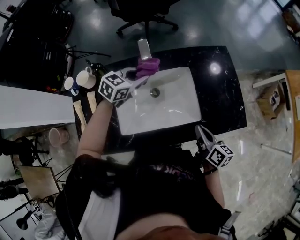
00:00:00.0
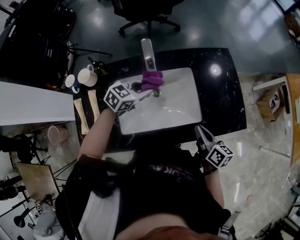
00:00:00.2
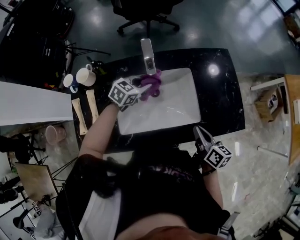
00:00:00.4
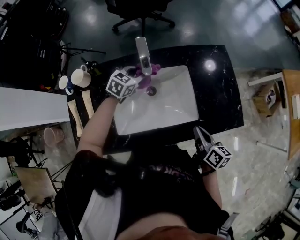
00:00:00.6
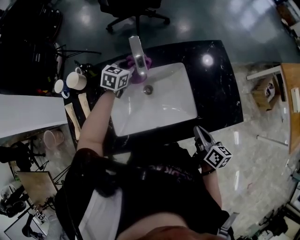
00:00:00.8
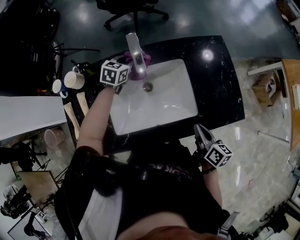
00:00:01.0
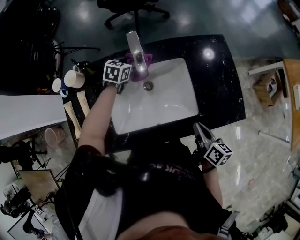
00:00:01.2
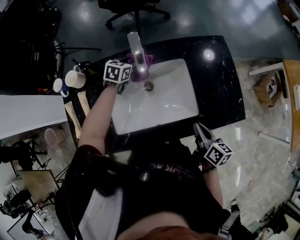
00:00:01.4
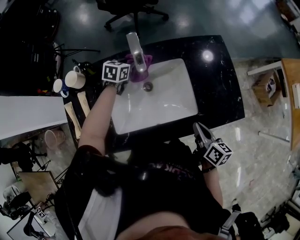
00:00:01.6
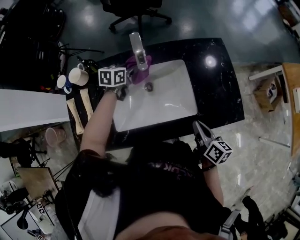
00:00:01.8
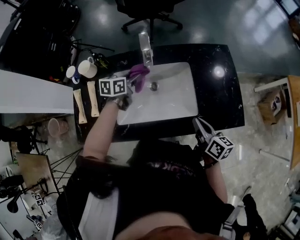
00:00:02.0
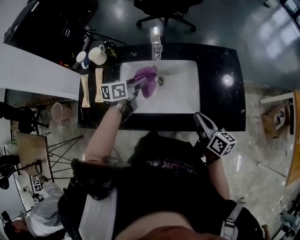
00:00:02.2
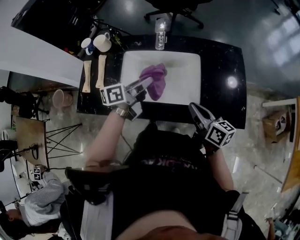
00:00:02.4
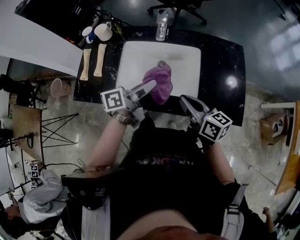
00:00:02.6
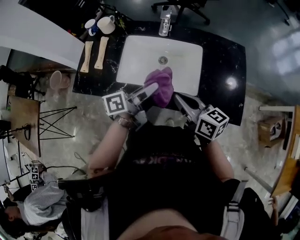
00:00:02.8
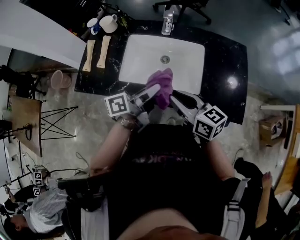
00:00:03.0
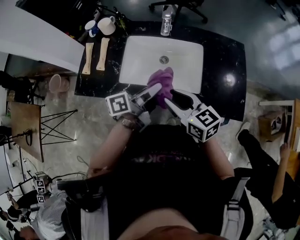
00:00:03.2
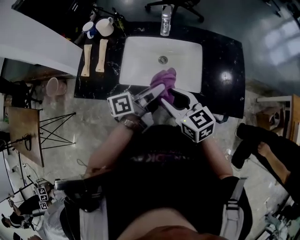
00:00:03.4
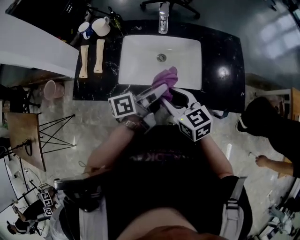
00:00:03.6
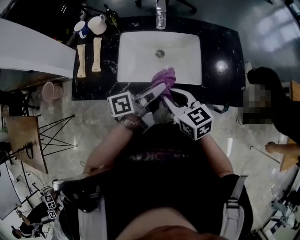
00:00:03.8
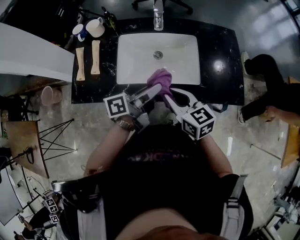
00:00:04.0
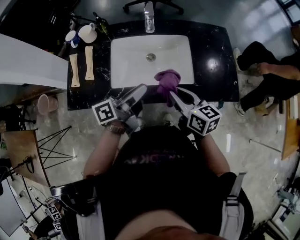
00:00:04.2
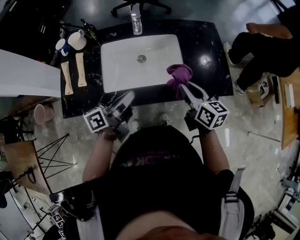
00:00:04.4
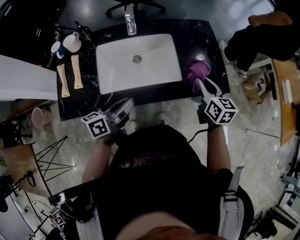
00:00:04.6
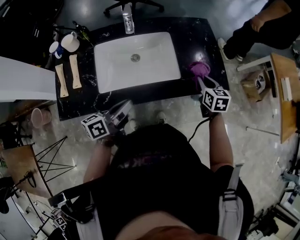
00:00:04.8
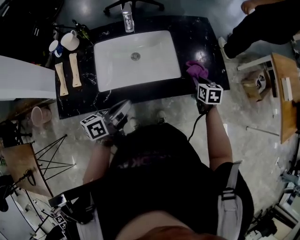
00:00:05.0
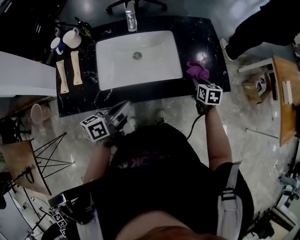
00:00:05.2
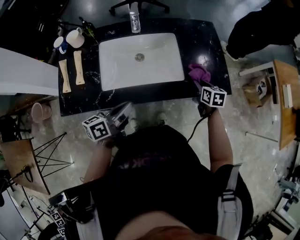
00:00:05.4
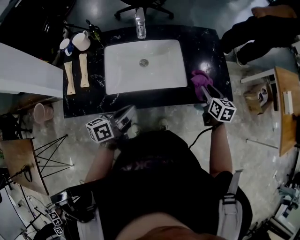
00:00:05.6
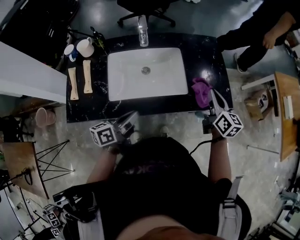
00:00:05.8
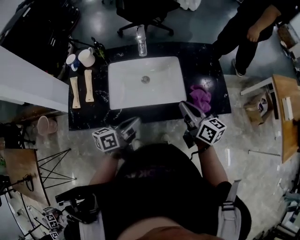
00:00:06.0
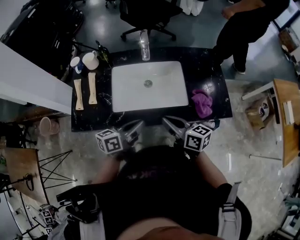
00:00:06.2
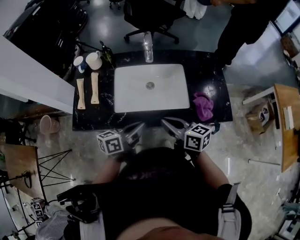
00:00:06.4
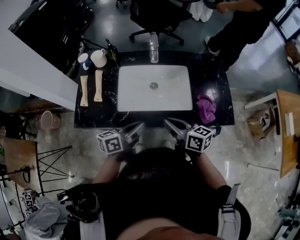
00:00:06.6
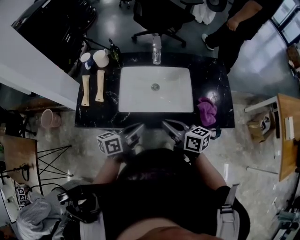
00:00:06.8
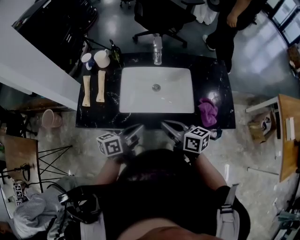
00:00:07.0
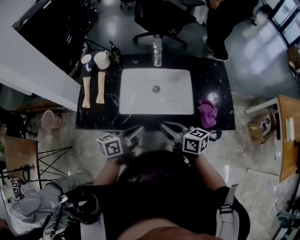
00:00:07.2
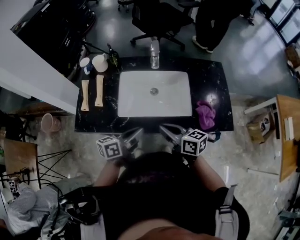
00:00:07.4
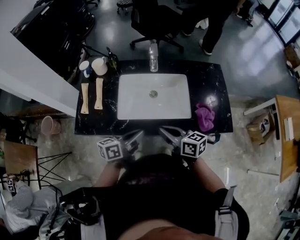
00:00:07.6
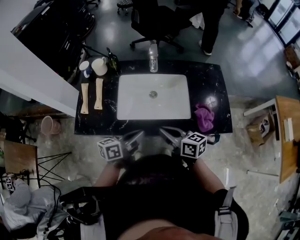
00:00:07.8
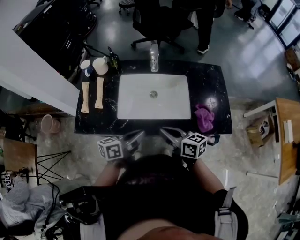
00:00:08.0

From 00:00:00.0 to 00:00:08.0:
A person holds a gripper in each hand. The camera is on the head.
From 00:00:00.0 to 00:00:01.6: The left gripper is displaced downward and forward by roughly 15 cm, and swivels approximately 20 degrees.
From 00:00:01.6 to 00:00:03.2: The left gripper shifts by roughly 35 cm, and rolls counterclockwise, seen from behind, by roughly 60 degrees; the right gripper moves roughly 15 cm, turns by some 60 degrees, and opens up.
From 00:00:03.2 to 00:00:04.8: The right gripper shifts by approximately 25 cm, rotates about 50 degrees, and closes, while the left gripper changes place by some 10 cm, and turns by roughly 20 degrees.
From 00:00:04.8 to 00:00:06.4: The right gripper is displaced to the left and backward by some 25 cm, swivels roughly 50 degrees, and opens and closes again.
From 00:00:06.4 to 00:00:08.0: There are only small adjustments of the grippers.

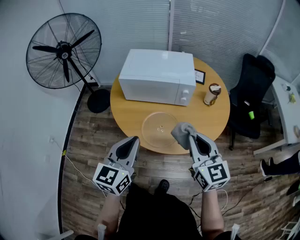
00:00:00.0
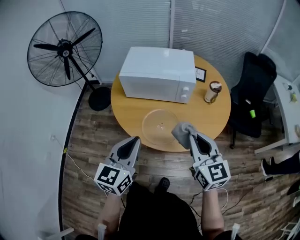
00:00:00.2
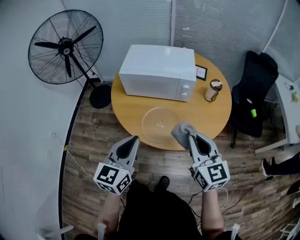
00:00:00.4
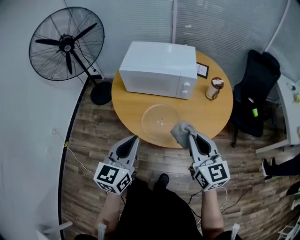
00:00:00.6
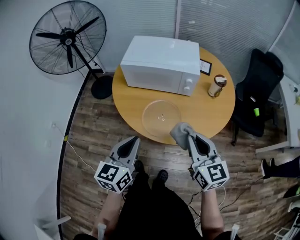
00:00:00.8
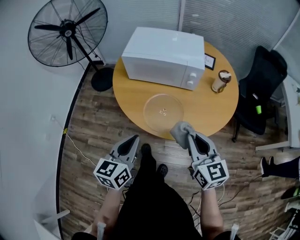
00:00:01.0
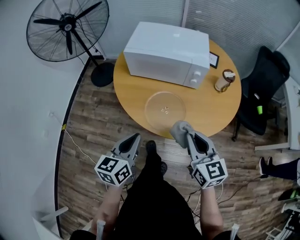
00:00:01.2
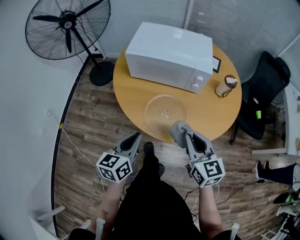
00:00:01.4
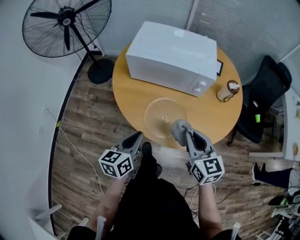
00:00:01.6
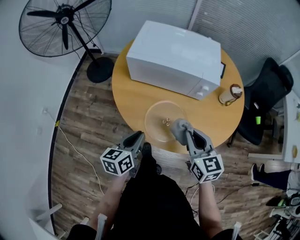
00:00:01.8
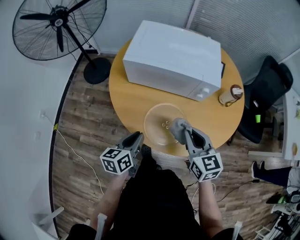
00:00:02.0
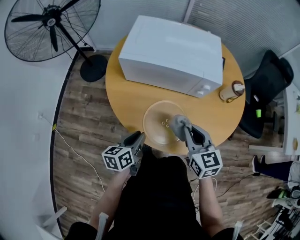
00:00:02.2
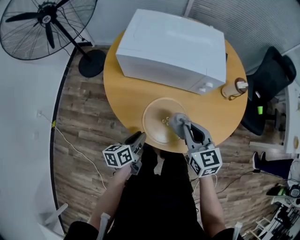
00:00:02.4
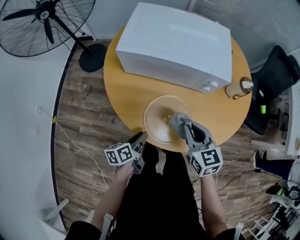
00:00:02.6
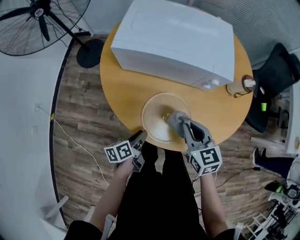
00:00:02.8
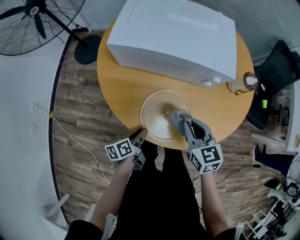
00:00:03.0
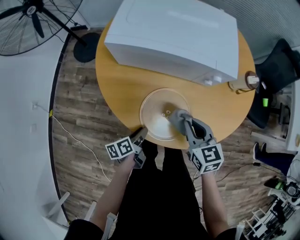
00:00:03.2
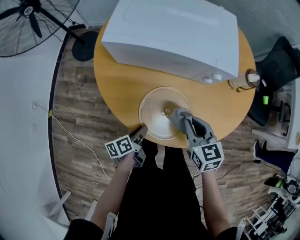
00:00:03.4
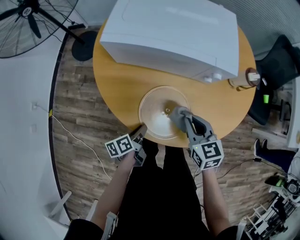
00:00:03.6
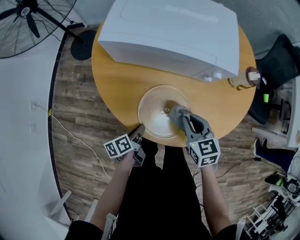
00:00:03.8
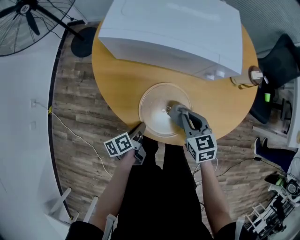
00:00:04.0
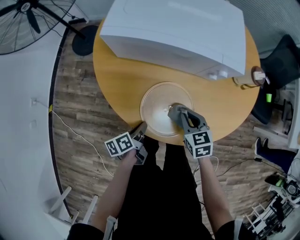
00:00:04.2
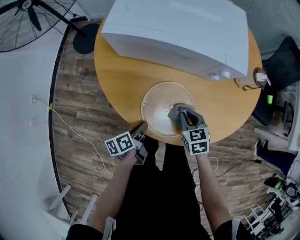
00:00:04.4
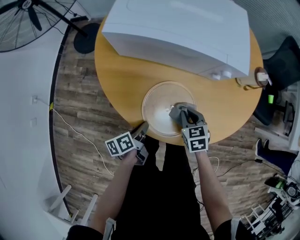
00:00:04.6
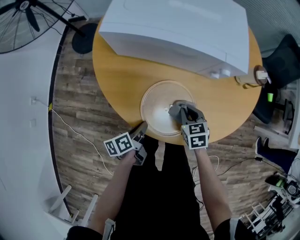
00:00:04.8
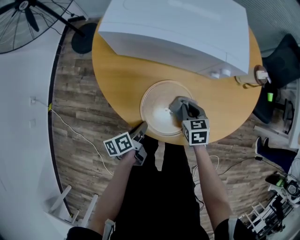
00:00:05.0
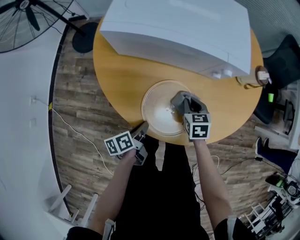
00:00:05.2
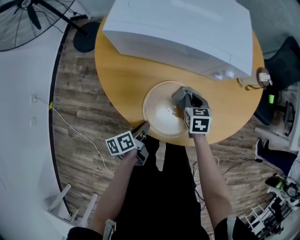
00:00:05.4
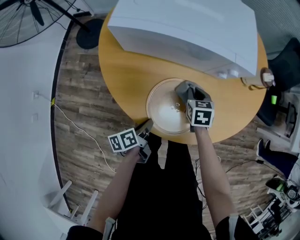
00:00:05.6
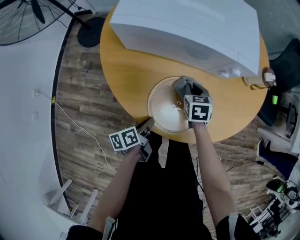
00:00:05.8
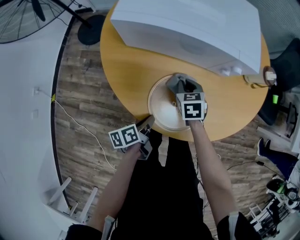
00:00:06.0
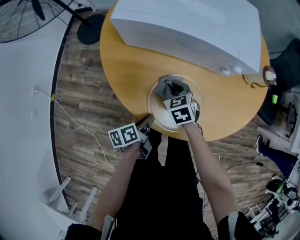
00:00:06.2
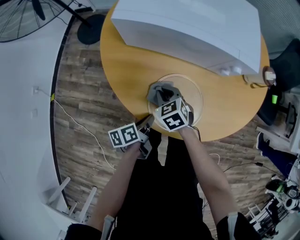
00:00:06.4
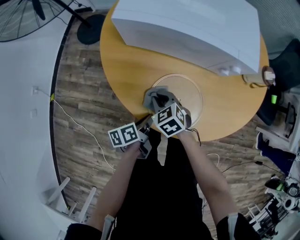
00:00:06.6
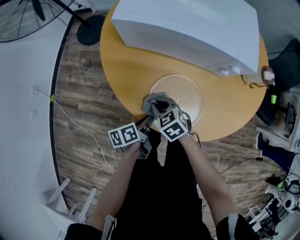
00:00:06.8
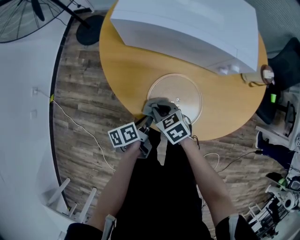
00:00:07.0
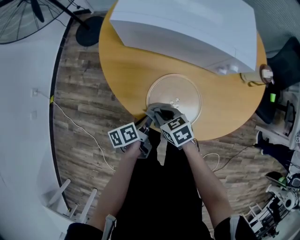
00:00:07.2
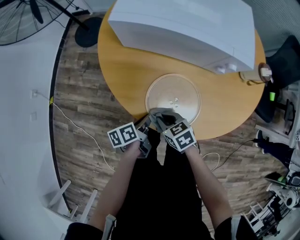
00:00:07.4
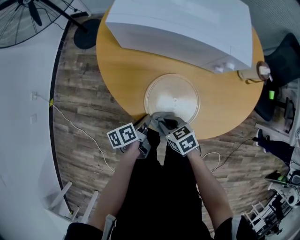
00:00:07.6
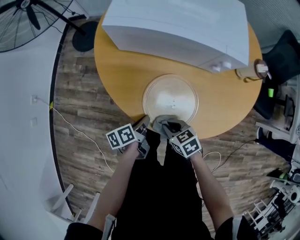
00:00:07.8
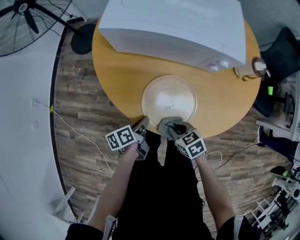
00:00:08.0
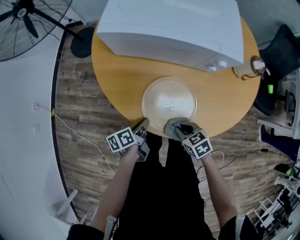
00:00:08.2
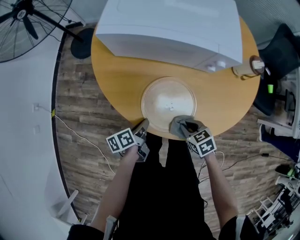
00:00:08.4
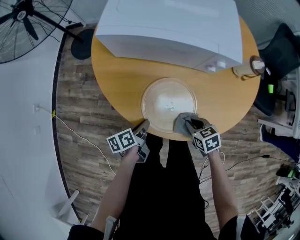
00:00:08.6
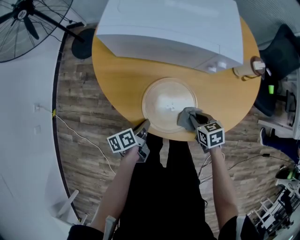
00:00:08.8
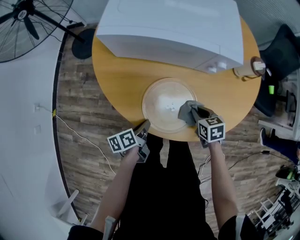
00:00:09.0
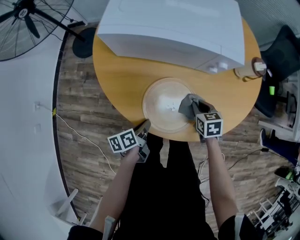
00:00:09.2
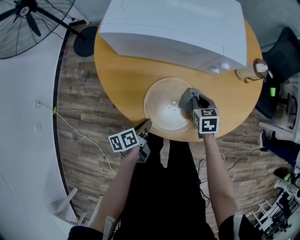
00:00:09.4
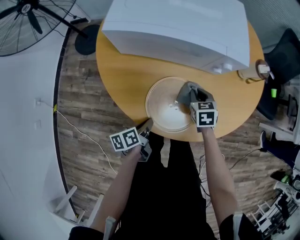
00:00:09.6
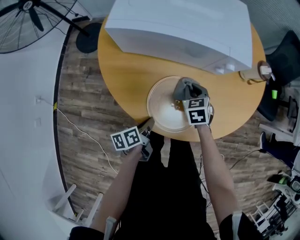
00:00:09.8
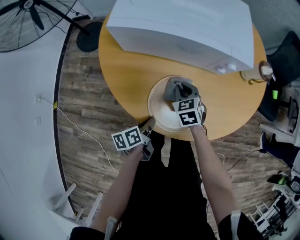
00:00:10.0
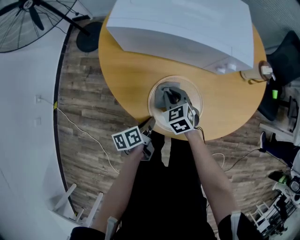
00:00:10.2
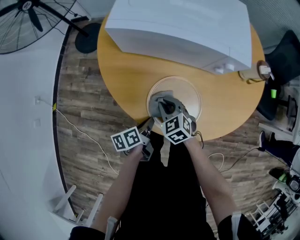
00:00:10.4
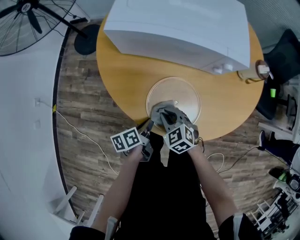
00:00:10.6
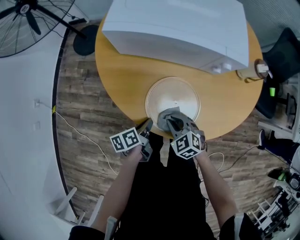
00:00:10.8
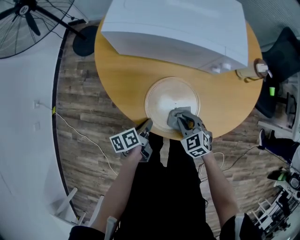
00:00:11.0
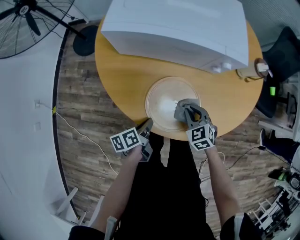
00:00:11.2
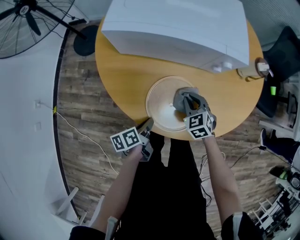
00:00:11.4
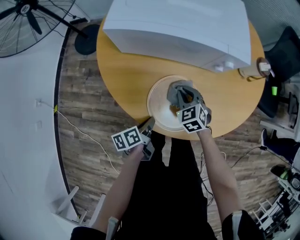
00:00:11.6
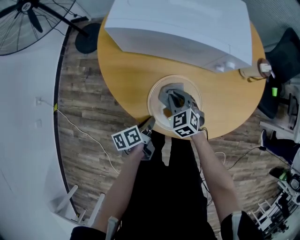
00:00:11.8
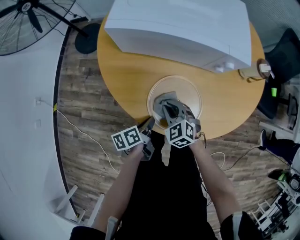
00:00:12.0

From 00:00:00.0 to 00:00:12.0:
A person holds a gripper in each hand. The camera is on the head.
From 00:00:00.0 to 00:00:01.6: The left gripper shifts roughly 15 cm downward, and rotates roughly 30 degrees, while the right gripper moves downward and forward, roughly 10 cm.
From 00:00:01.6 to 00:00:03.0: The left gripper moves downward, roughly 20 cm, changes its angle by about 40 degrees, and opens its fingers. The right gripper moves downward and forward, about 15 cm.
From 00:00:03.0 to 00:00:04.4: The right gripper moves downward, about 15 cm.
From 00:00:04.4 to 00:00:06.0: The right gripper moves forward and to the left, roughly 10 cm.
From 00:00:06.0 to 00:00:07.6: The right gripper moves backward and to the left, roughly 20 cm, and changes its angle by about 30 degrees.
From 00:00:07.6 to 00:00:09.0: The right gripper heads to the right, covering approximately 15 cm, and turns by some 20 degrees.
From 00:00:09.0 to 00:00:10.4: The right gripper heads to the left, covering approximately 20 cm, and turns by approximately 30 degrees.
From 00:00:10.4 to 00:00:12.0: The right gripper goes to the right and returns, about 15 cm each way.

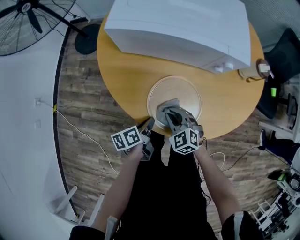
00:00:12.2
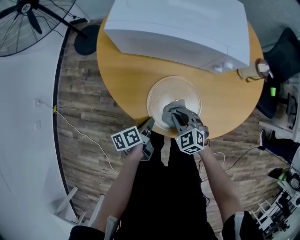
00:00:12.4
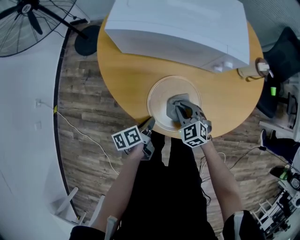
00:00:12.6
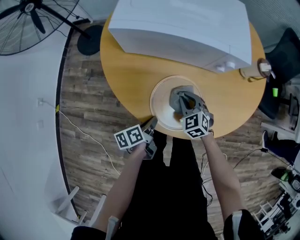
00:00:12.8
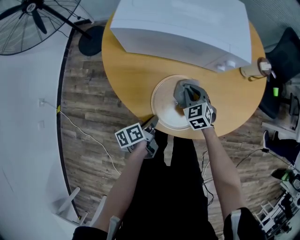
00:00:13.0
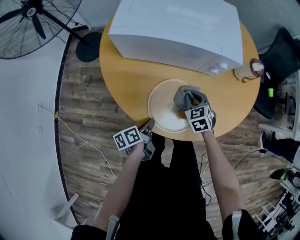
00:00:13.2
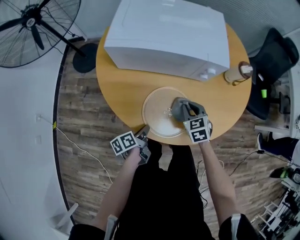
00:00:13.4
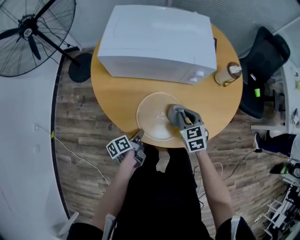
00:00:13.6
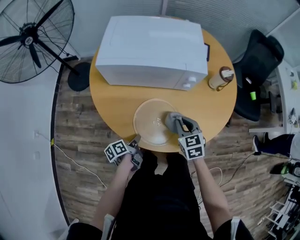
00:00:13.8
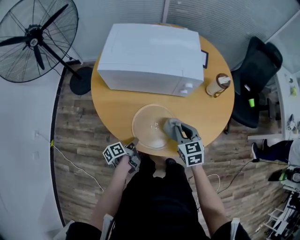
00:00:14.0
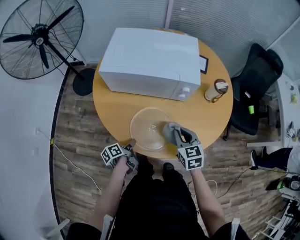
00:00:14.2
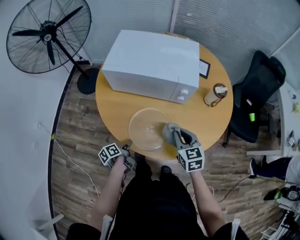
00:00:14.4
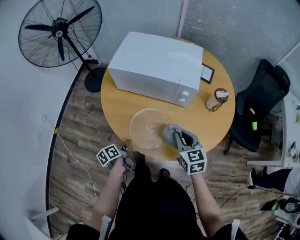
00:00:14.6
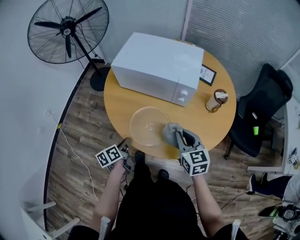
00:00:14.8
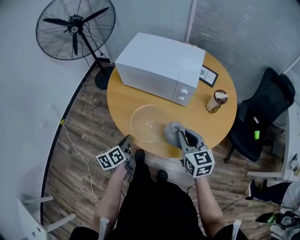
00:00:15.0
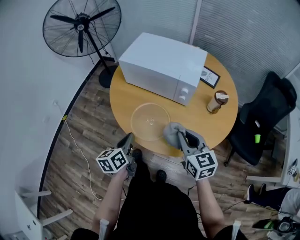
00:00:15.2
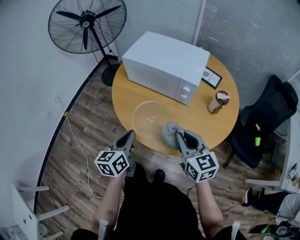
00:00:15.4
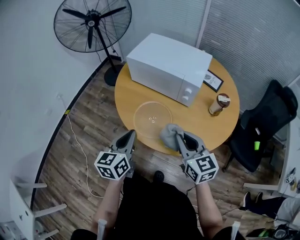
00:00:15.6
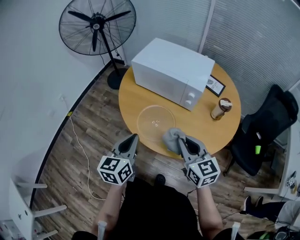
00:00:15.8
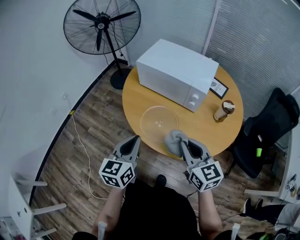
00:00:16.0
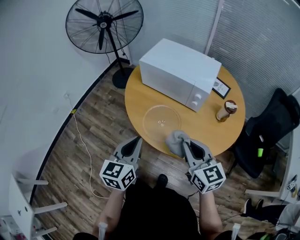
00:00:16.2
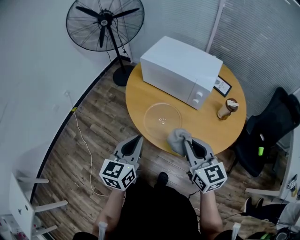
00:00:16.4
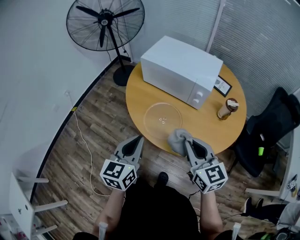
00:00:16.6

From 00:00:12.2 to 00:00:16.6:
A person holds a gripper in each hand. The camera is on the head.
From 00:00:12.2 to 00:00:13.6: The right gripper moves to the right, upward and forward, some 15 cm, and changes its angle by approximately 30 degrees.
From 00:00:13.6 to 00:00:15.2: The two grippers go roughly 20 cm upward. The right gripper swivels roughly 30 degrees, while the left gripper rotates approximately 40 degrees.
From 00:00:15.2 to 00:00:16.6: The right gripper goes about 10 cm backward and upward; the left gripper shifts approximately 15 cm upward and backward, and swivels approximately 30 degrees.
